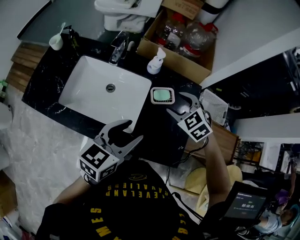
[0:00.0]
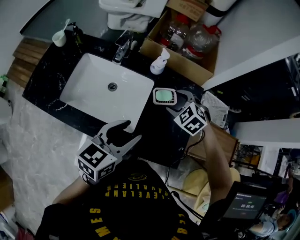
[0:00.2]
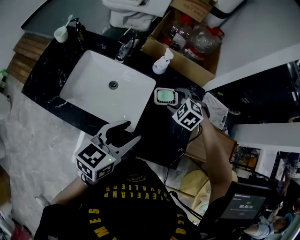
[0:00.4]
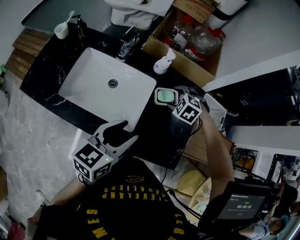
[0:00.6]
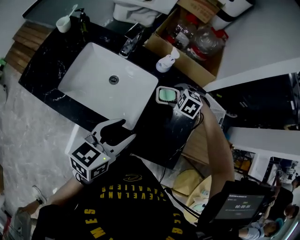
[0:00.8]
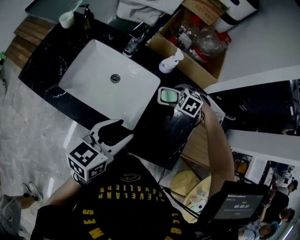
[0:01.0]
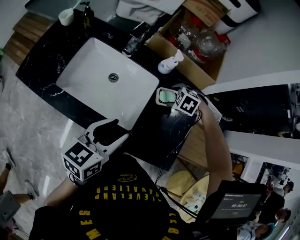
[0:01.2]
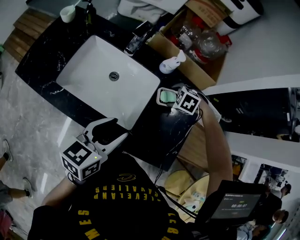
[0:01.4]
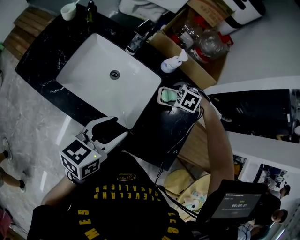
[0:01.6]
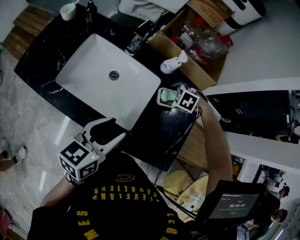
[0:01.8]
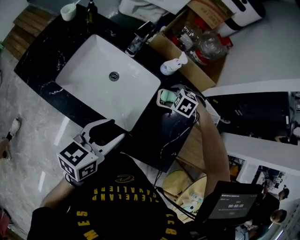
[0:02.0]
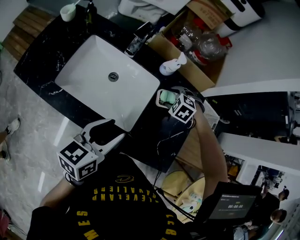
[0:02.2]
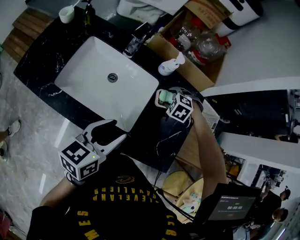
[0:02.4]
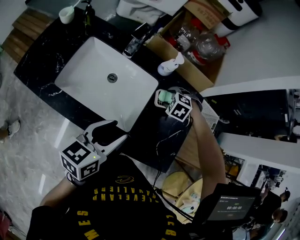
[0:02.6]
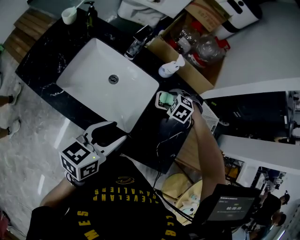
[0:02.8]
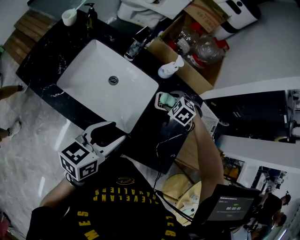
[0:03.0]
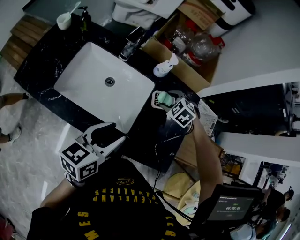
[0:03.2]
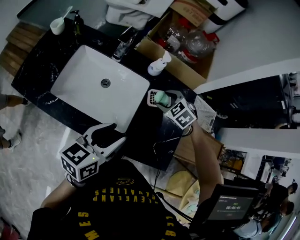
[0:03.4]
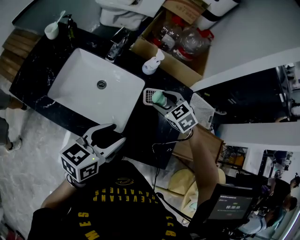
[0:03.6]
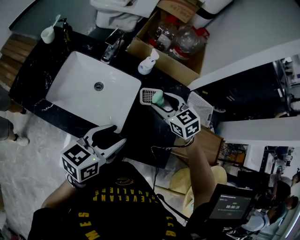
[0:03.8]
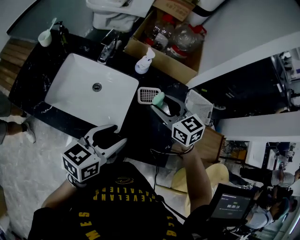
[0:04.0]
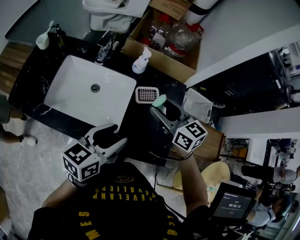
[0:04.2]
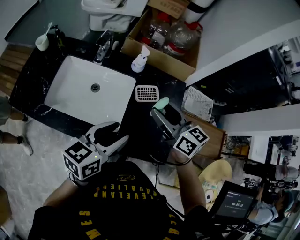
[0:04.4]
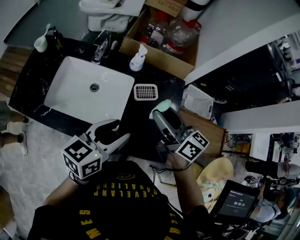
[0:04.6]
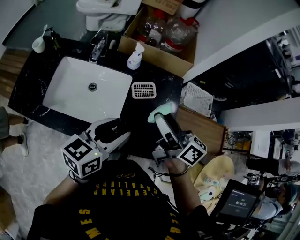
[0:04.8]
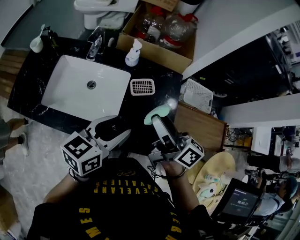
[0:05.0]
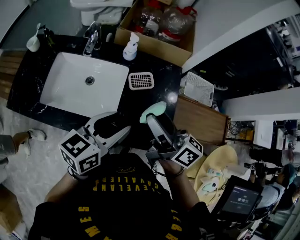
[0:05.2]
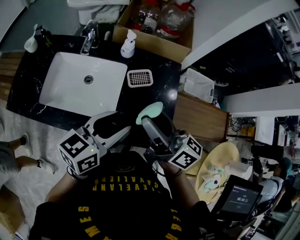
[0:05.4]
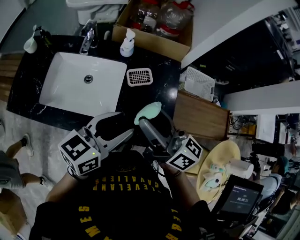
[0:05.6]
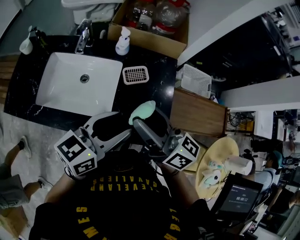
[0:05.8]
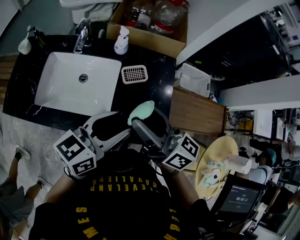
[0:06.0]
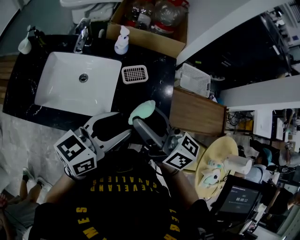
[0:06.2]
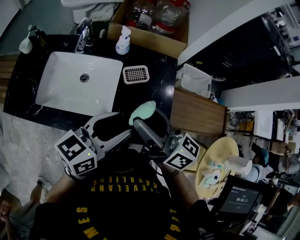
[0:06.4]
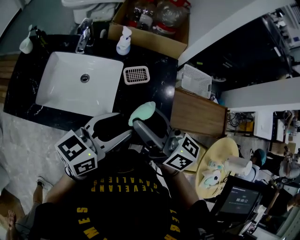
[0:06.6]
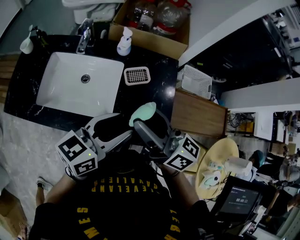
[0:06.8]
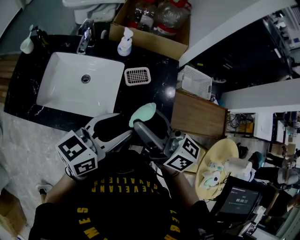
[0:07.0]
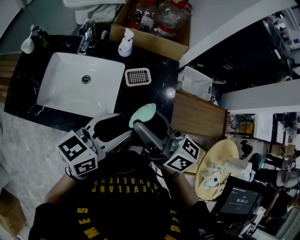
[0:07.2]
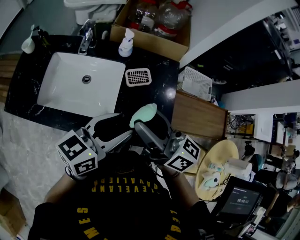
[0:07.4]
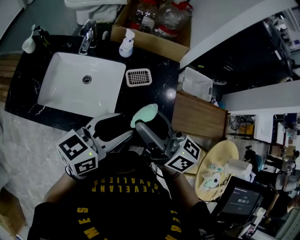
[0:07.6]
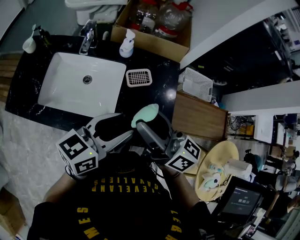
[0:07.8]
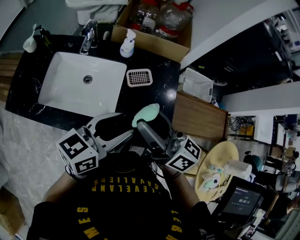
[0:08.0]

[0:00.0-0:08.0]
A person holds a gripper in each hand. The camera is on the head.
0:00.0 to 0:01.6: The left gripper changes place by approximately 10 cm, while the right gripper heads downward, covering roughly 10 cm, and angles its fingers downward, by about 40 degrees.
0:01.6 to 0:03.2: The right gripper turns by approximately 20 degrees.
0:03.2 to 0:04.8: The left gripper travels to the right by some 10 cm; the right gripper moves upward and backward, some 25 cm, and tips its fingers upward by roughly 70 degrees.
0:04.8 to 0:06.4: The right gripper travels backward by roughly 5 cm.
0:06.4 to 0:08.0: The two grippers keep their place.

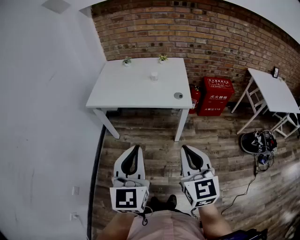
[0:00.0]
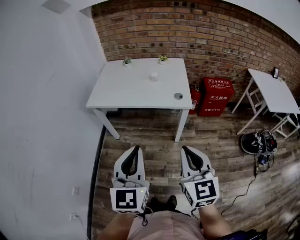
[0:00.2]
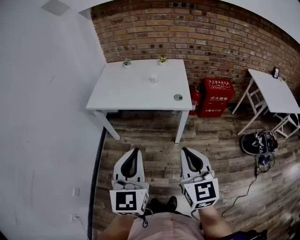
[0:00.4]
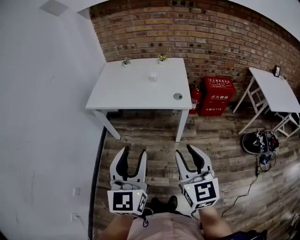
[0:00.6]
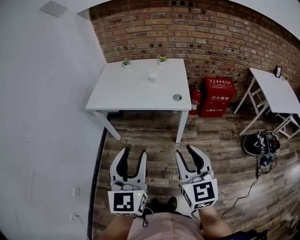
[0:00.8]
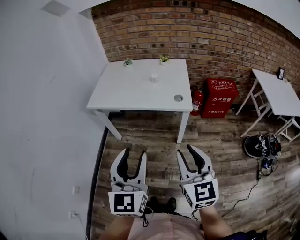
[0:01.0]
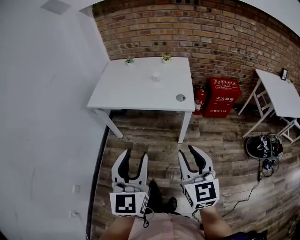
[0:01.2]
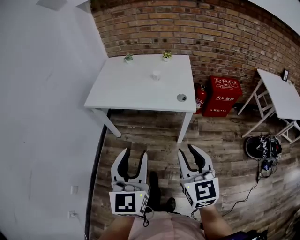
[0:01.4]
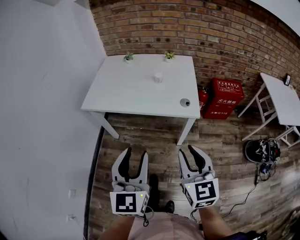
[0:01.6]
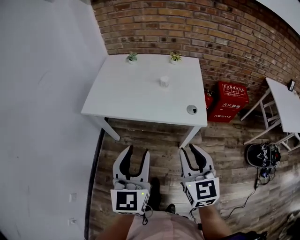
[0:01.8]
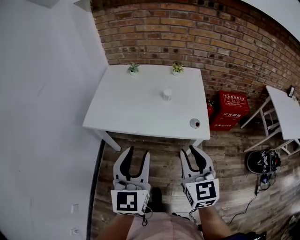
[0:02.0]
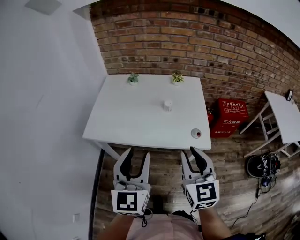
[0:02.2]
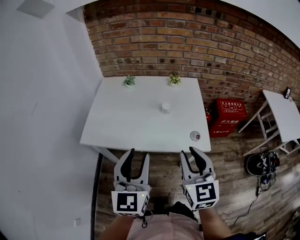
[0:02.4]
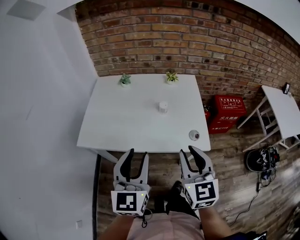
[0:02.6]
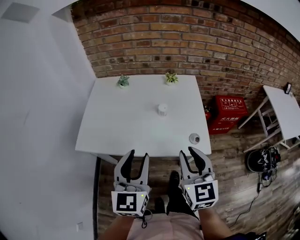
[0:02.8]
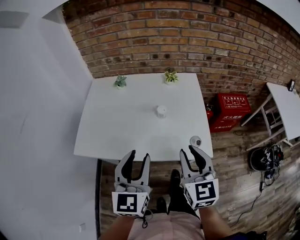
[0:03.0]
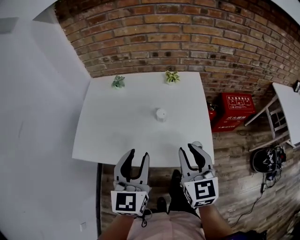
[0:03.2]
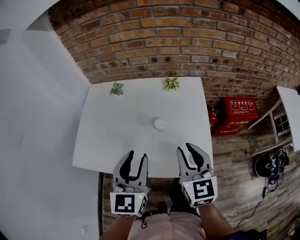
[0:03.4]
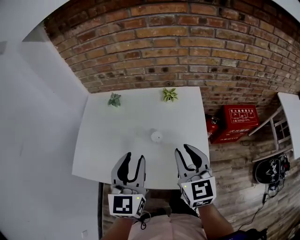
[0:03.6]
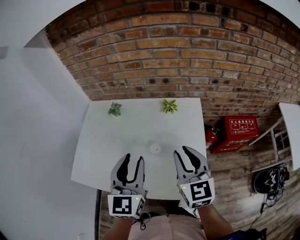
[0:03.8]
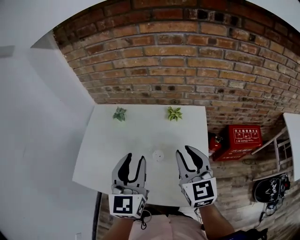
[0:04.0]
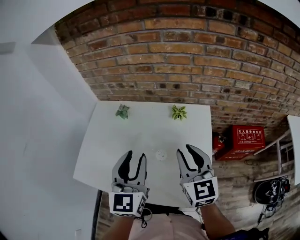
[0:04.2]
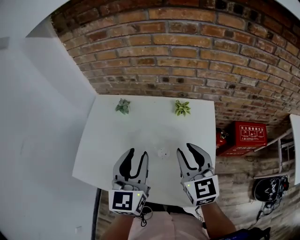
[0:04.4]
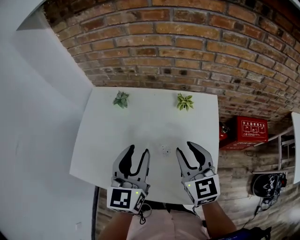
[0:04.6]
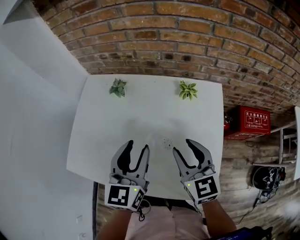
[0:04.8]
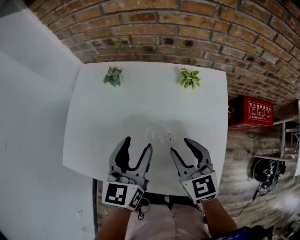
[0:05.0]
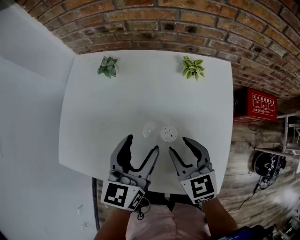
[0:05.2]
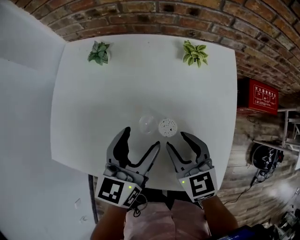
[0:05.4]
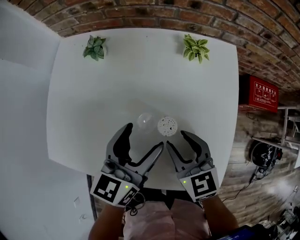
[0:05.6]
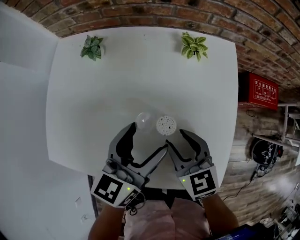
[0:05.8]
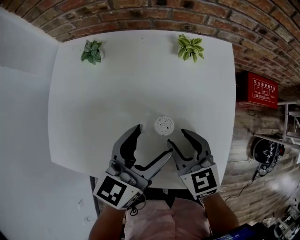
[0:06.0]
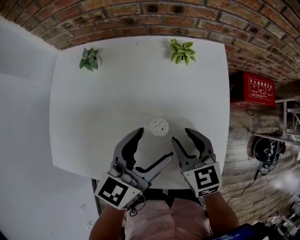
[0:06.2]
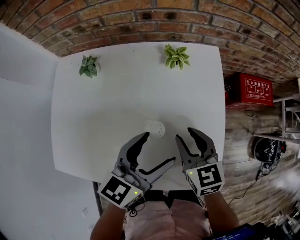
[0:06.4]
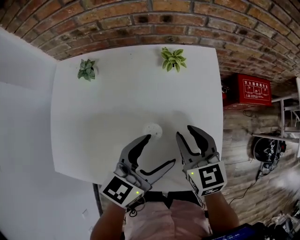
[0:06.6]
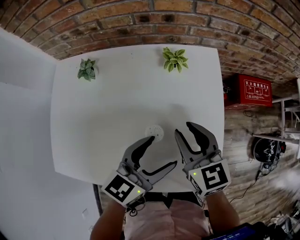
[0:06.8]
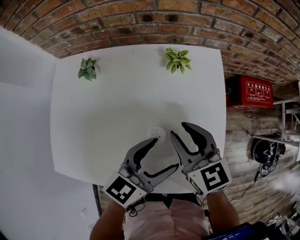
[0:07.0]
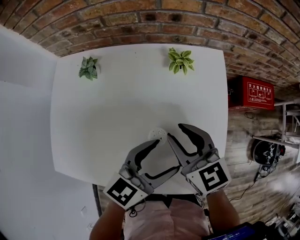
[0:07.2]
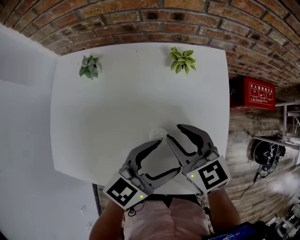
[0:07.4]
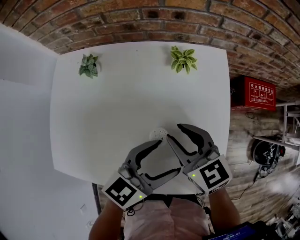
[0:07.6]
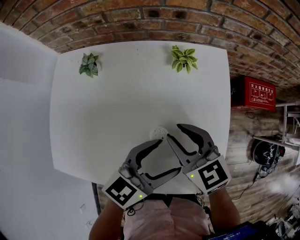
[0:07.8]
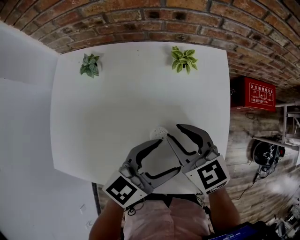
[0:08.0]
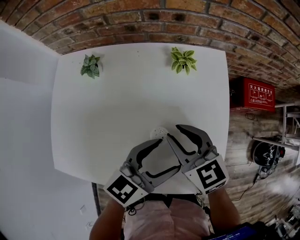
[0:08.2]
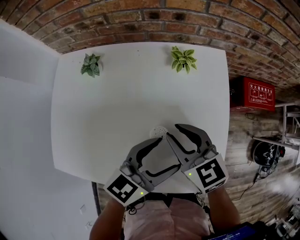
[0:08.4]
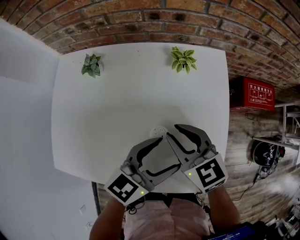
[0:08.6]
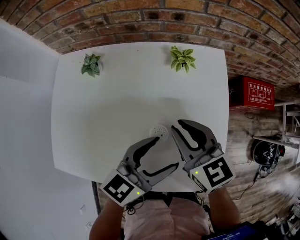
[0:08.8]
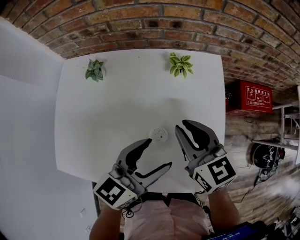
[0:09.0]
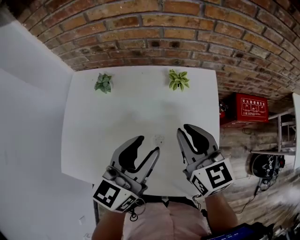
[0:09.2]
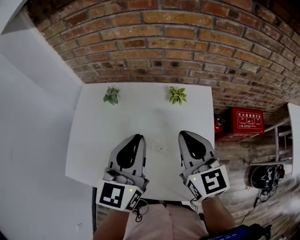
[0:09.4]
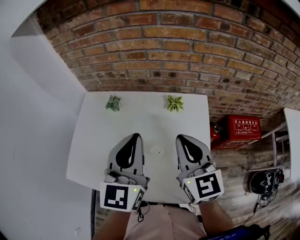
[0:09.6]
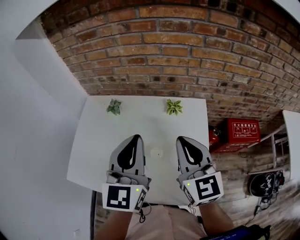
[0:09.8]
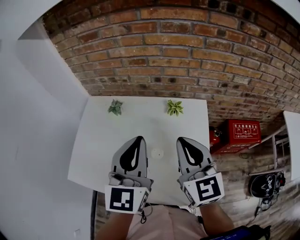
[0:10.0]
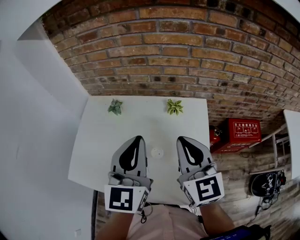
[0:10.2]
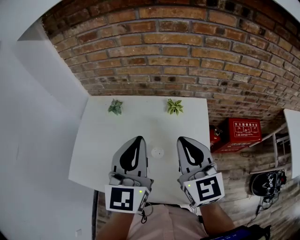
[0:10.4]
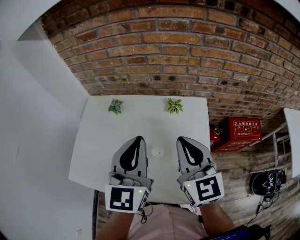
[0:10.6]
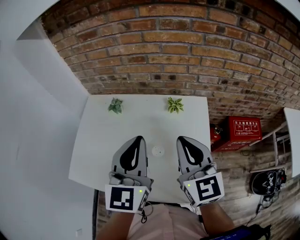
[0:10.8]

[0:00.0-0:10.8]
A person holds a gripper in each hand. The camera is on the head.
0:00.0 to 0:01.6: The left gripper heads forward, covering some 10 cm, and opens its fingers, while the right gripper goes about 15 cm forward and downward, and opens its fingers.
0:01.6 to 0:03.0: Both grippers move forward, about 25 cm.
0:03.0 to 0:04.6: Both grippers travel together forward, roughly 25 cm.
0:04.6 to 0:06.2: The left gripper shifts about 15 cm downward and to the right, changes its angle by some 30 degrees, and opens up. Meanwhile the right gripper heads downward, covering about 15 cm, and turns by approximately 20 degrees.
0:06.2 to 0:07.8: The right gripper ends up about 5 cm from where it was.
0:07.8 to 0:09.2: The left gripper heads upward and to the left, covering about 10 cm, swivels some 30 degrees, and closes. Meanwhile the right gripper goes some 10 cm upward.
0:09.2 to 0:10.8: The grippers both shift upward by approximately 10 cm. The left gripper swivels approximately 30 degrees, and closes.

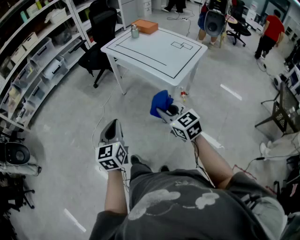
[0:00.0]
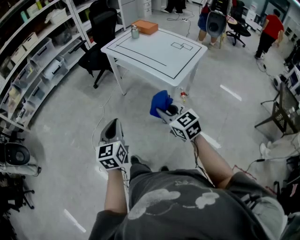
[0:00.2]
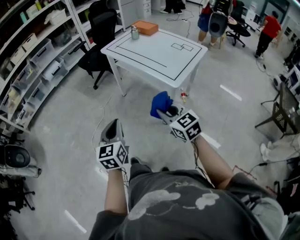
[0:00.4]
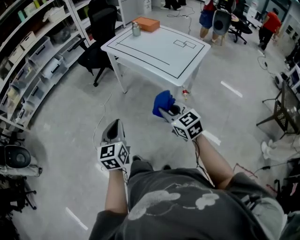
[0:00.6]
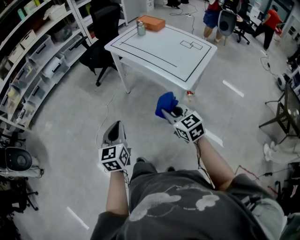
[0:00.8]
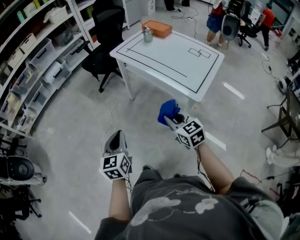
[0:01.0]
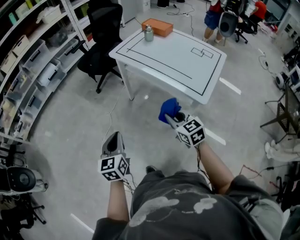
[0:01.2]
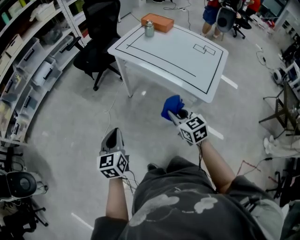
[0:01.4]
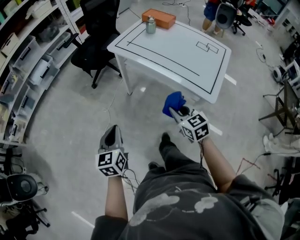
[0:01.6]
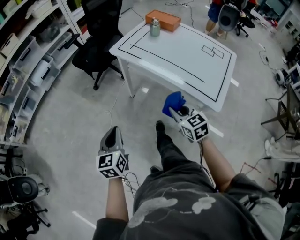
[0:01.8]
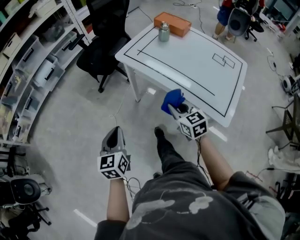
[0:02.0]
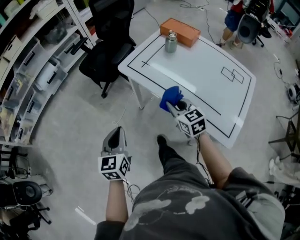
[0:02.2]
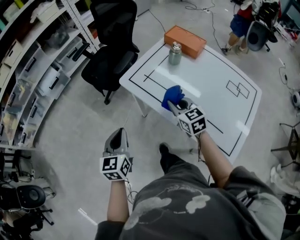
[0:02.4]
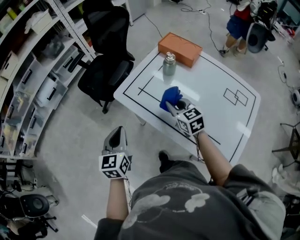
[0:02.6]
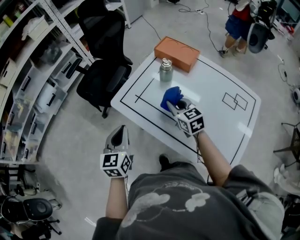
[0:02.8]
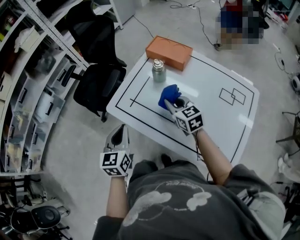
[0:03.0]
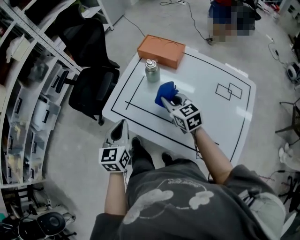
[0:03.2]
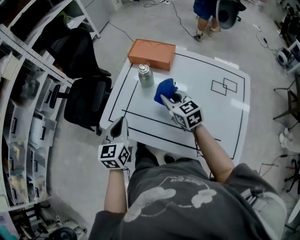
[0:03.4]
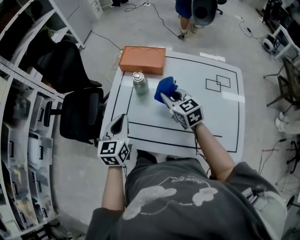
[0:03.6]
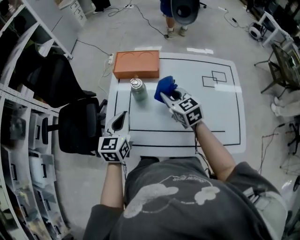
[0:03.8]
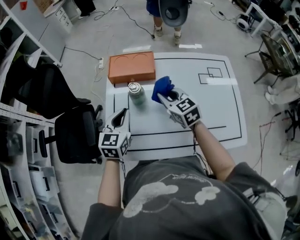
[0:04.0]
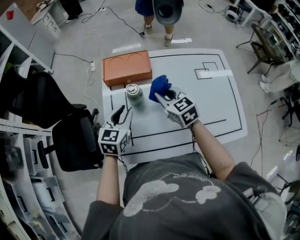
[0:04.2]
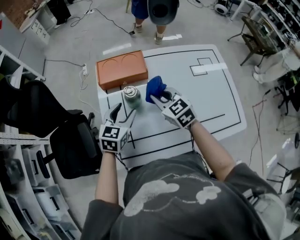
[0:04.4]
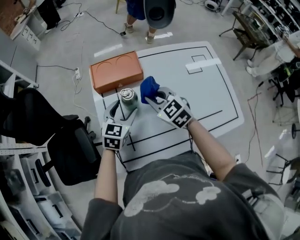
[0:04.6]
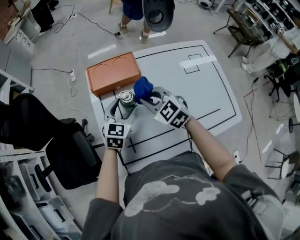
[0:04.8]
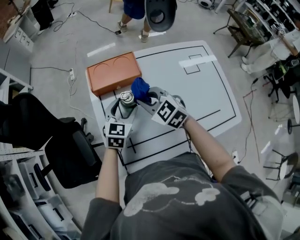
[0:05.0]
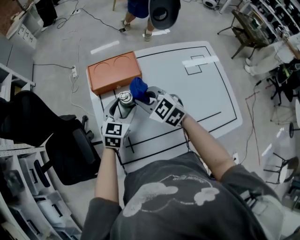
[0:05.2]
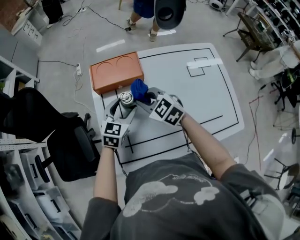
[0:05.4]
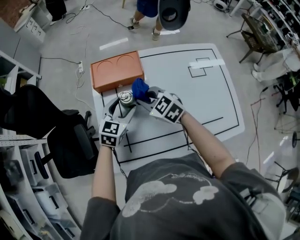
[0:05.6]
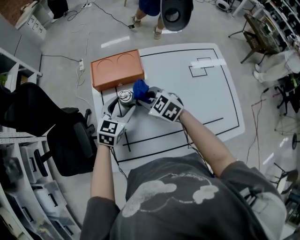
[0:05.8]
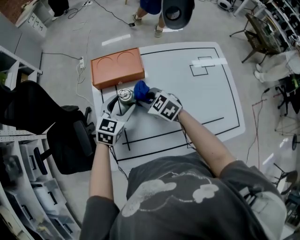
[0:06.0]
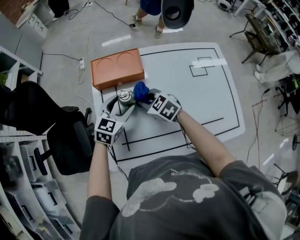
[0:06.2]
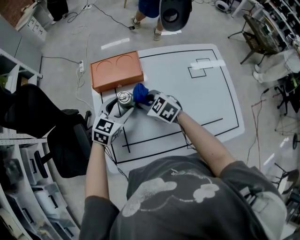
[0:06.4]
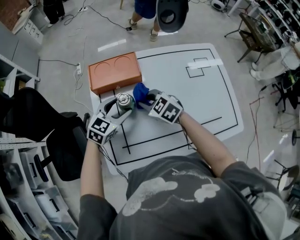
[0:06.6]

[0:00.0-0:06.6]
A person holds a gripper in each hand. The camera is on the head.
0:00.0 to 0:01.6: The right gripper heads forward, covering some 25 cm; the left gripper travels forward and to the left by roughly 30 cm.
0:01.6 to 0:03.2: The pair of grippers is taken forward, approximately 50 cm.
0:03.2 to 0:05.0: The left gripper moves roughly 30 cm, swivels roughly 60 degrees, and opens its fingers; the right gripper changes place by about 10 cm, and rotates roughly 30 degrees.
0:05.0 to 0:06.6: The right gripper shifts some 5 cm downward.
